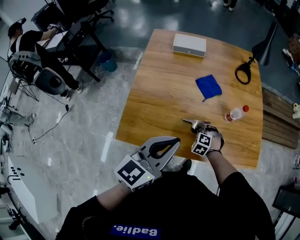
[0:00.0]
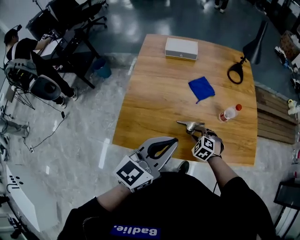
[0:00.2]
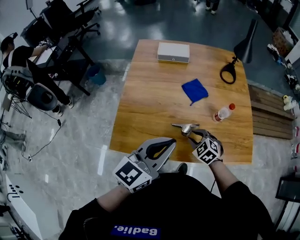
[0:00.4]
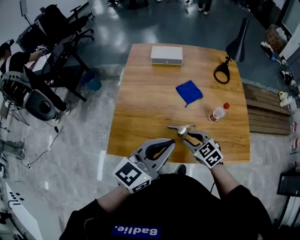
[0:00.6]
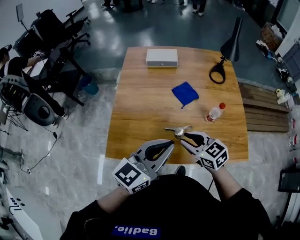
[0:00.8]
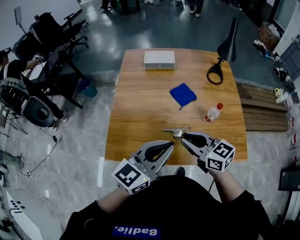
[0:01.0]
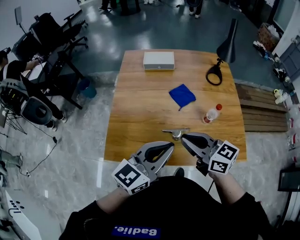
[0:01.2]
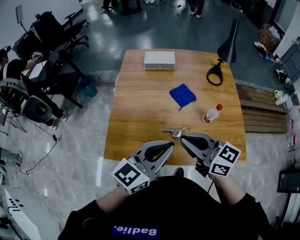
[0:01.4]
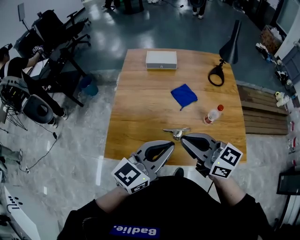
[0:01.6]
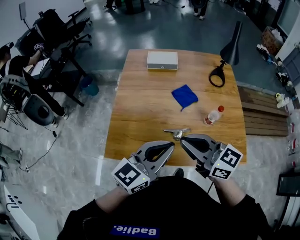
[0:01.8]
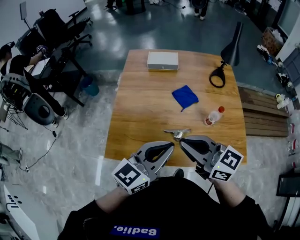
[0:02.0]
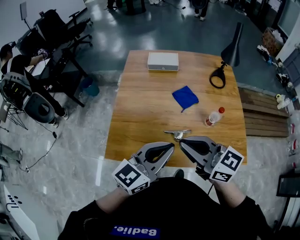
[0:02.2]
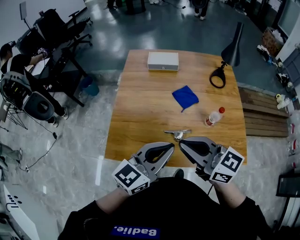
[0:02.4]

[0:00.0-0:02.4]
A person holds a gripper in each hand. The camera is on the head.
0:00.0 to 0:01.2: The right gripper shifts about 30 cm upward, tips its fingers upward by approximately 60 degrees, and closes its fingers. The left gripper travels to the right by approximately 5 cm.
0:01.2 to 0:02.4: The right gripper travels upward by approximately 5 cm.

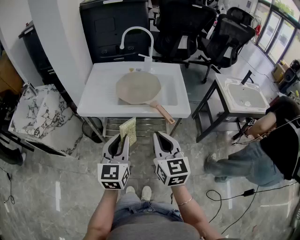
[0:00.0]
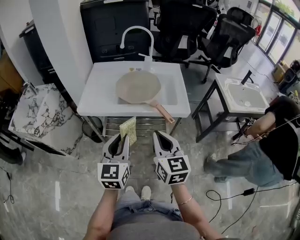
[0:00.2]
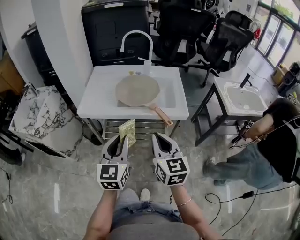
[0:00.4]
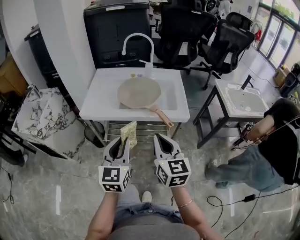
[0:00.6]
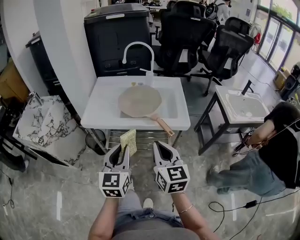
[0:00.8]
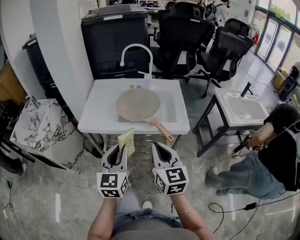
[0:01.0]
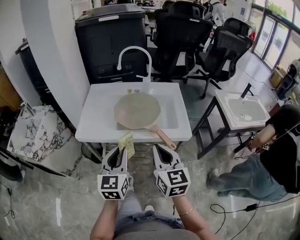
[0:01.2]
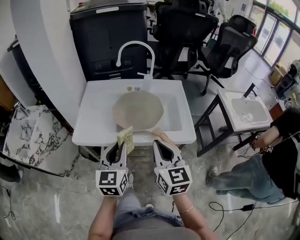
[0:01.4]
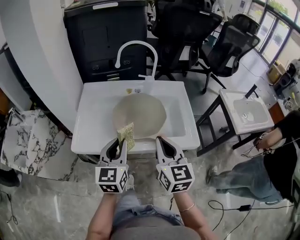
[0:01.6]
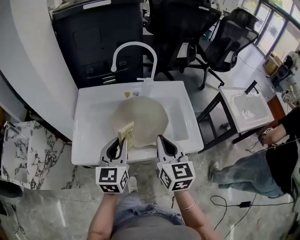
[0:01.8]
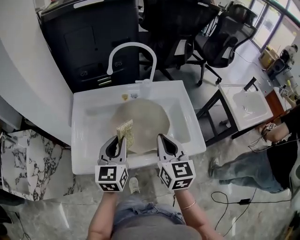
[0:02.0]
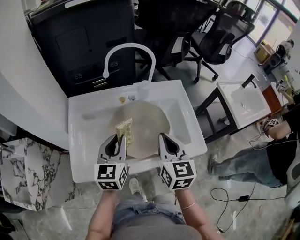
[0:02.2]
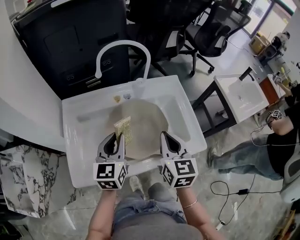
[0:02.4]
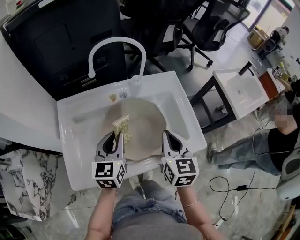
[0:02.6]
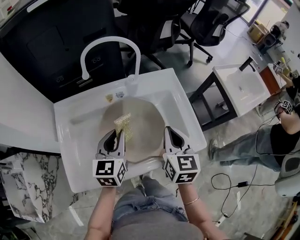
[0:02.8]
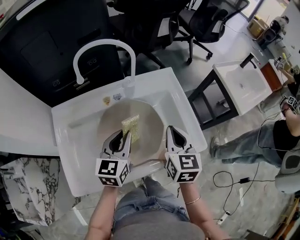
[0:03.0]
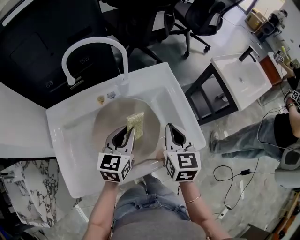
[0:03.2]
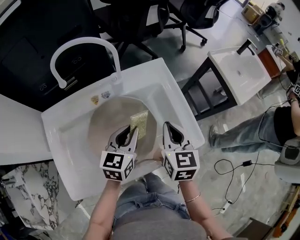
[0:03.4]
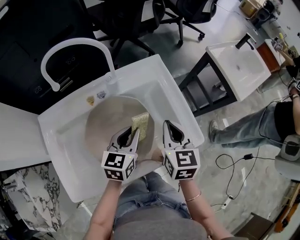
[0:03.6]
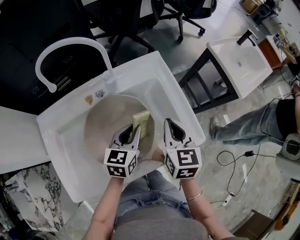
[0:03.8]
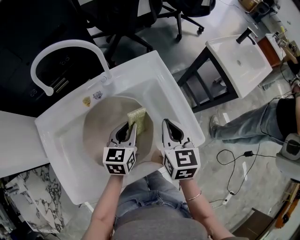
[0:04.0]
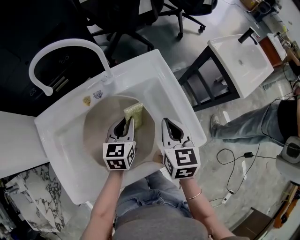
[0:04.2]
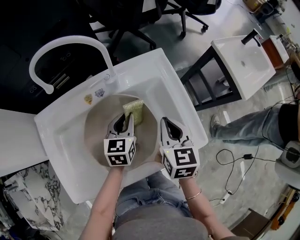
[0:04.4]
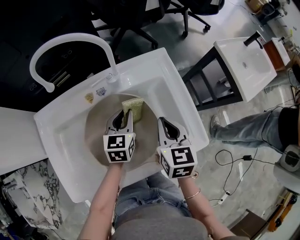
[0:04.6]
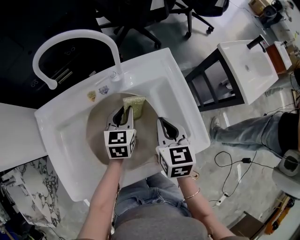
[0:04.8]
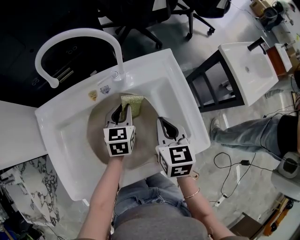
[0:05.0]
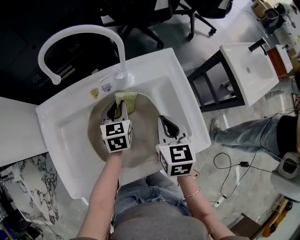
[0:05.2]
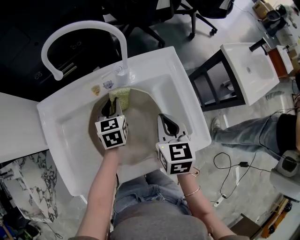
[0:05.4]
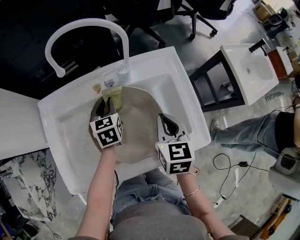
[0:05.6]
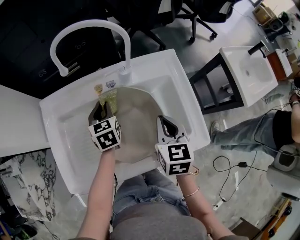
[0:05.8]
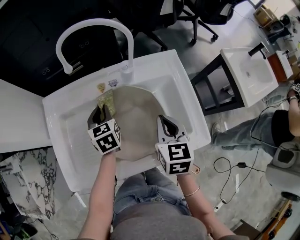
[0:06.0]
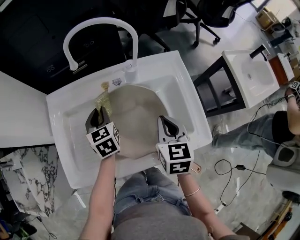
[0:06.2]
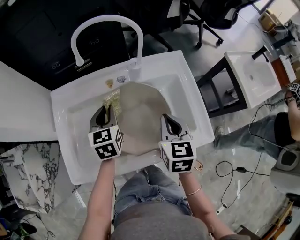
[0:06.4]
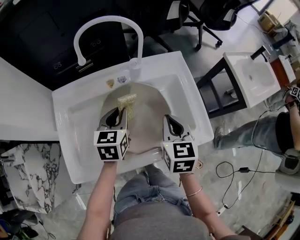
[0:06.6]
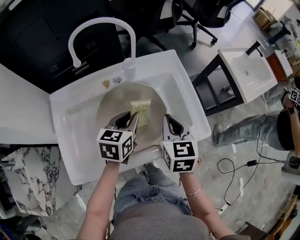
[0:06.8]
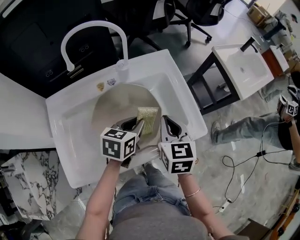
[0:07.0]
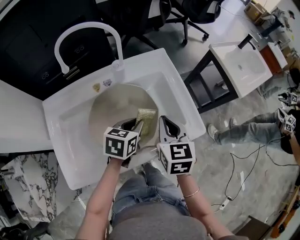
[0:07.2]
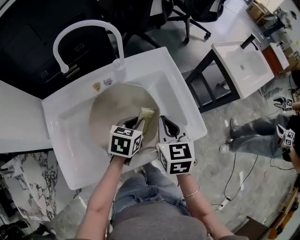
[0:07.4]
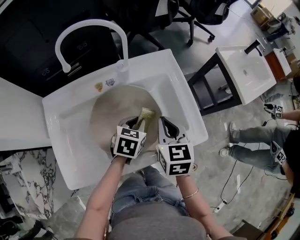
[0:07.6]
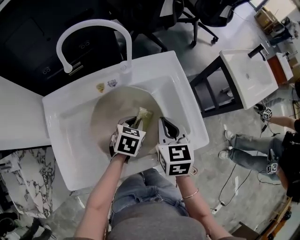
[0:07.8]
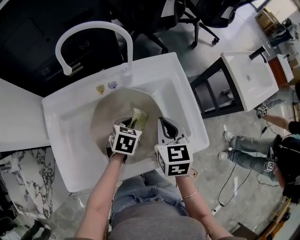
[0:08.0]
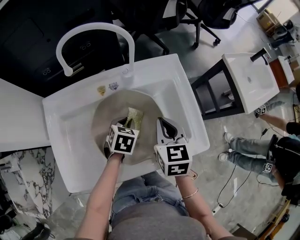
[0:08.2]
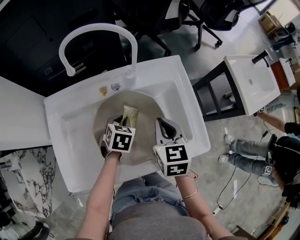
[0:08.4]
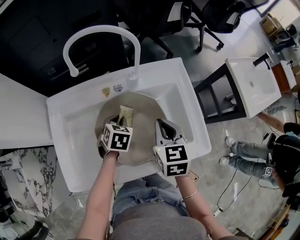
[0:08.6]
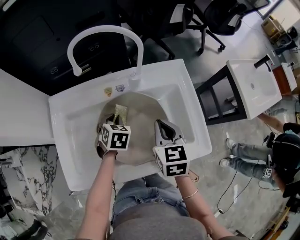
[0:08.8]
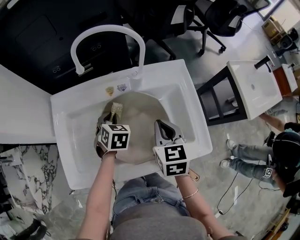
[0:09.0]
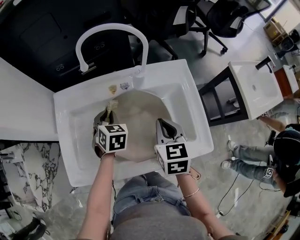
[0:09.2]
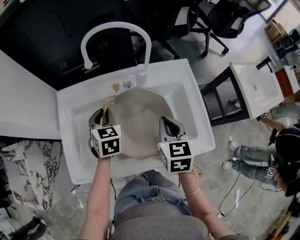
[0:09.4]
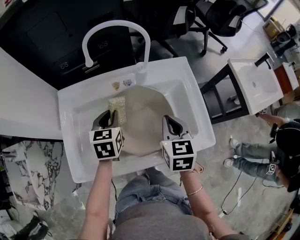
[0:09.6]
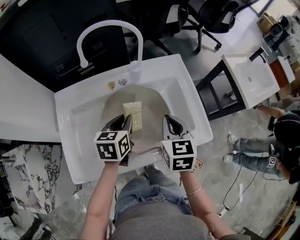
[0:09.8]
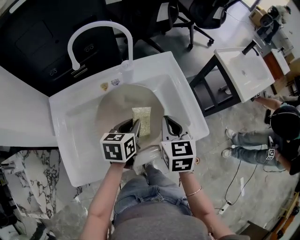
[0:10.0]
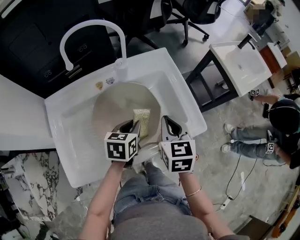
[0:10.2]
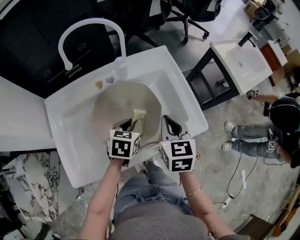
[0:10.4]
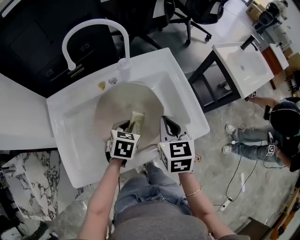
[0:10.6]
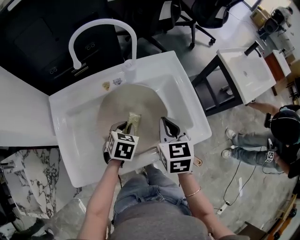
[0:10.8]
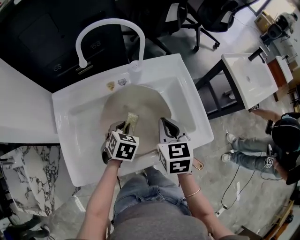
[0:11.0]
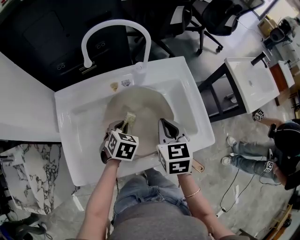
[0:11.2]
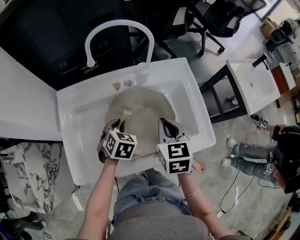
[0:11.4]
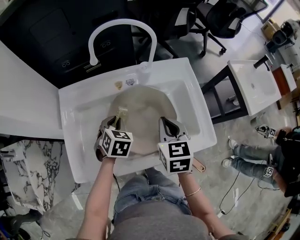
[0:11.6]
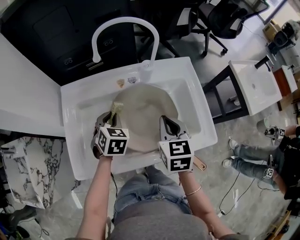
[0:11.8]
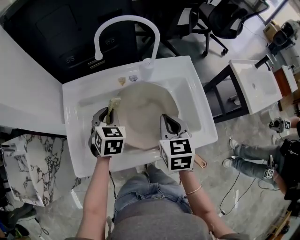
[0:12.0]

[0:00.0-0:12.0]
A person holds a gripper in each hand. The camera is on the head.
0:00.0 to 0:01.6: The two grippers go approximately 20 cm forward.
0:01.6 to 0:03.0: Both grippers travel together forward, approximately 20 cm. The left gripper changes its angle by about 20 degrees. Meanwhile the right gripper turns by about 30 degrees.
0:03.0 to 0:04.4: The left gripper heads forward and downward, covering roughly 15 cm. The right gripper travels downward by roughly 5 cm.
0:04.4 to 0:06.0: The right gripper is displaced to the left by approximately 5 cm. Meanwhile the left gripper travels to the left by roughly 15 cm, and rotates approximately 30 degrees.
0:06.0 to 0:07.6: The left gripper moves some 20 cm, and rotates some 40 degrees.
0:07.6 to 0:09.0: The right gripper moves roughly 5 cm. Meanwhile the left gripper shifts by about 15 cm, and changes its angle by some 30 degrees.
0:09.0 to 0:10.4: The right gripper changes place by some 10 cm. The left gripper moves some 10 cm upward and comes back, and turns by approximately 30 degrees.
0:10.4 to 0:12.0: The right gripper ends up about 10 cm from where it was. Meanwhile the left gripper ends up roughly 20 cm from where it was, and changes its angle by roughly 30 degrees.

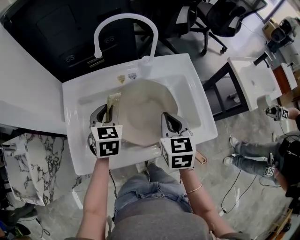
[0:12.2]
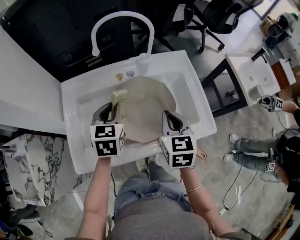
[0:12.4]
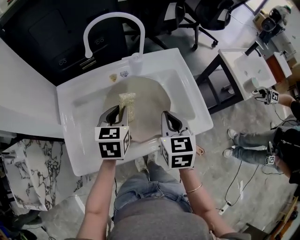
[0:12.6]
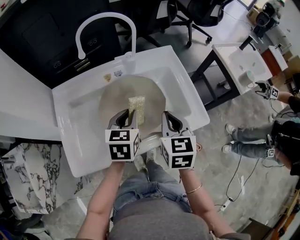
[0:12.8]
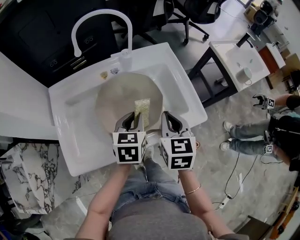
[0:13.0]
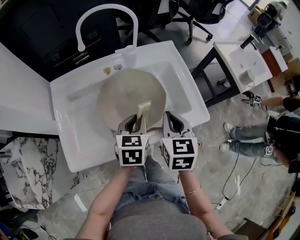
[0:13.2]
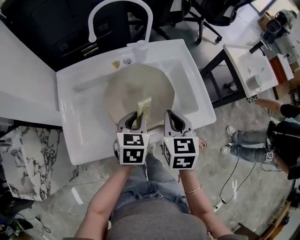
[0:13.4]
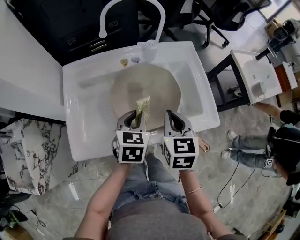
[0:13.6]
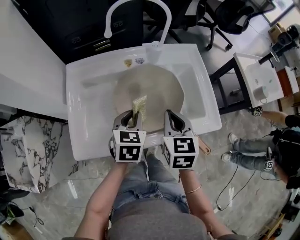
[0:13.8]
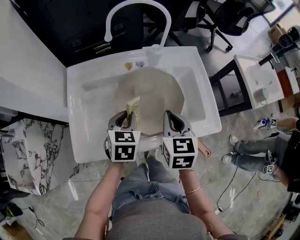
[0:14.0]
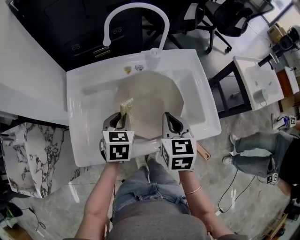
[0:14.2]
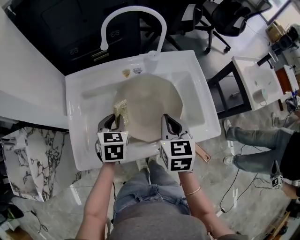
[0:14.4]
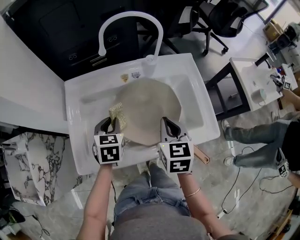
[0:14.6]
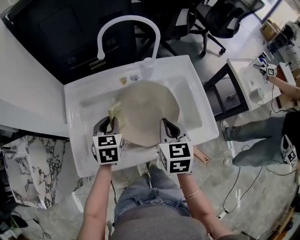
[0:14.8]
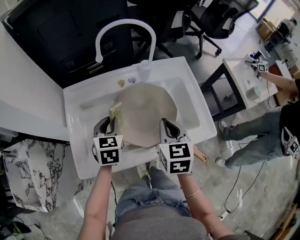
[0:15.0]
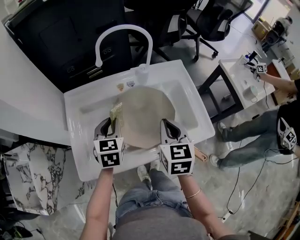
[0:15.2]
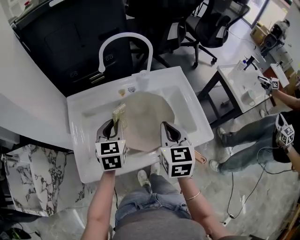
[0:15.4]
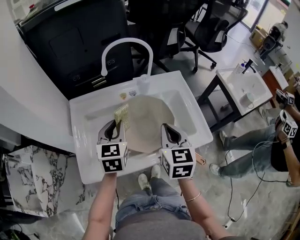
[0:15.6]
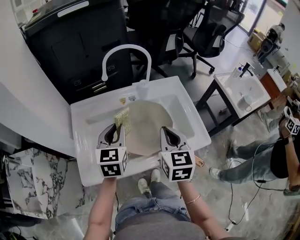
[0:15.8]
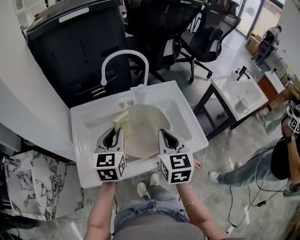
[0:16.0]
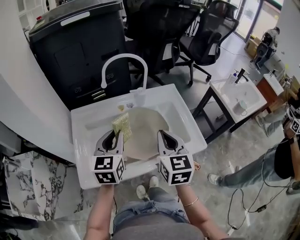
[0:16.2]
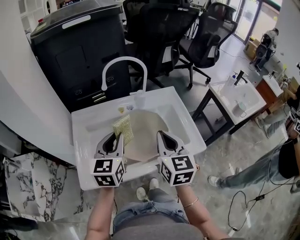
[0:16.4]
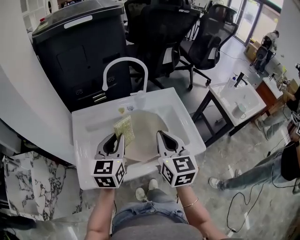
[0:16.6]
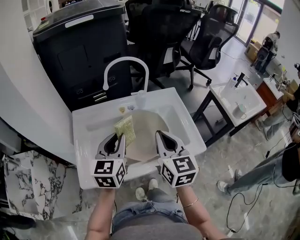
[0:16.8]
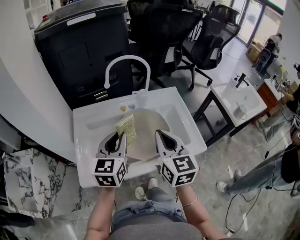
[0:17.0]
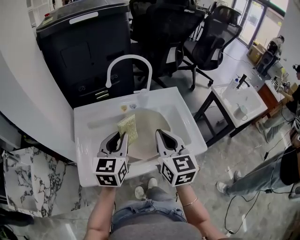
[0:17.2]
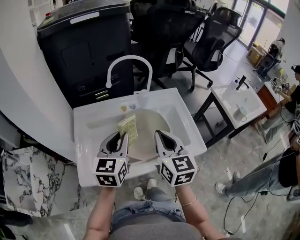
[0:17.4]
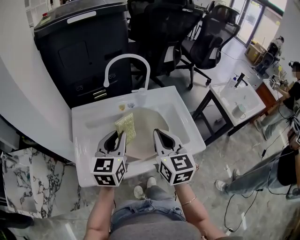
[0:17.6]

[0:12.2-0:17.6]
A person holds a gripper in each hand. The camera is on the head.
0:12.2 to 0:13.6: The left gripper is displaced to the right and backward by approximately 15 cm; the right gripper goes some 5 cm backward.
0:13.6 to 0:15.0: The left gripper moves to the left and forward, some 10 cm.
0:15.0 to 0:16.2: Both grippers move upward, about 10 cm. The left gripper rotates approximately 20 degrees.
0:16.2 to 0:17.6: The grippers stay close to where they were, moving slightly.

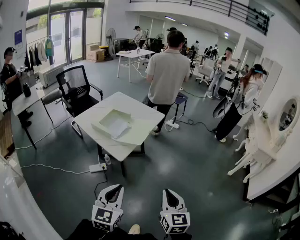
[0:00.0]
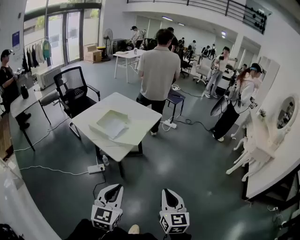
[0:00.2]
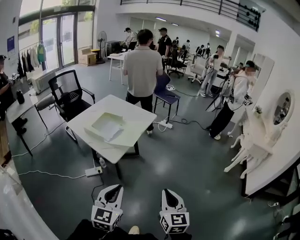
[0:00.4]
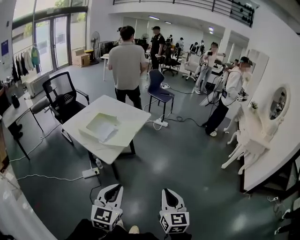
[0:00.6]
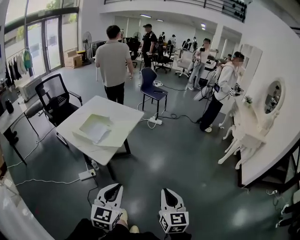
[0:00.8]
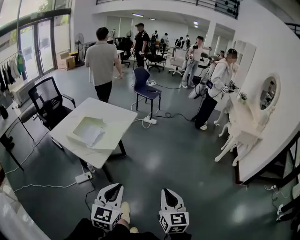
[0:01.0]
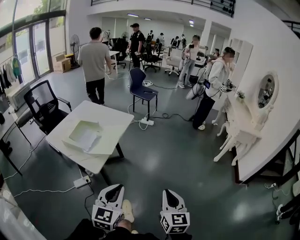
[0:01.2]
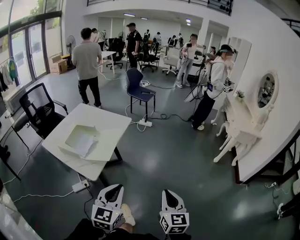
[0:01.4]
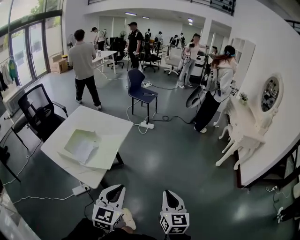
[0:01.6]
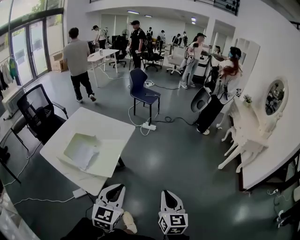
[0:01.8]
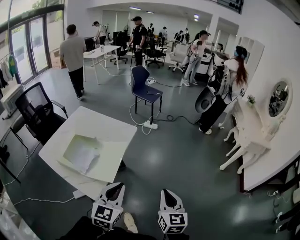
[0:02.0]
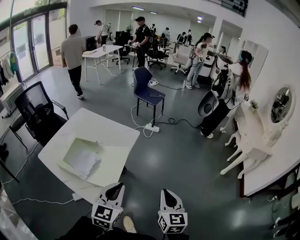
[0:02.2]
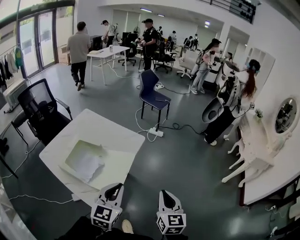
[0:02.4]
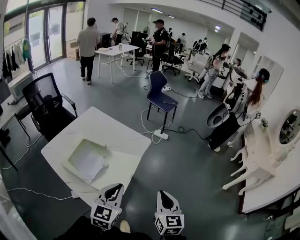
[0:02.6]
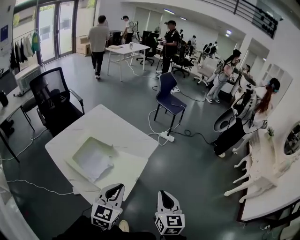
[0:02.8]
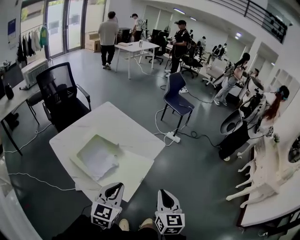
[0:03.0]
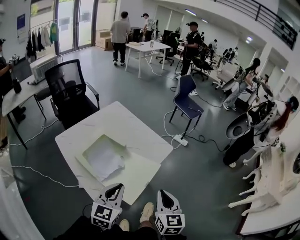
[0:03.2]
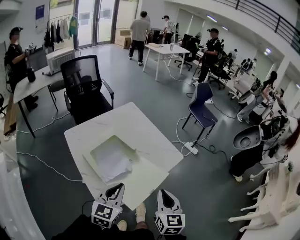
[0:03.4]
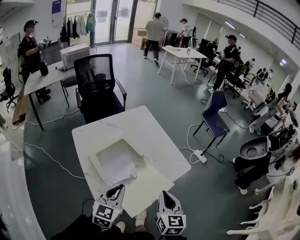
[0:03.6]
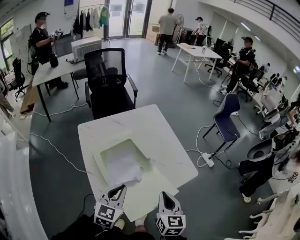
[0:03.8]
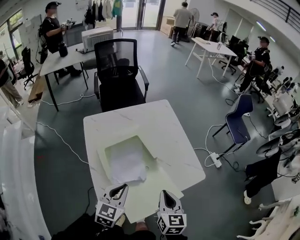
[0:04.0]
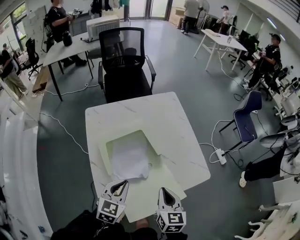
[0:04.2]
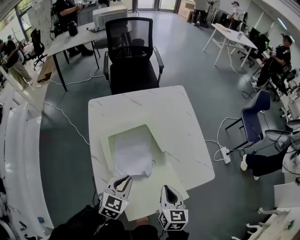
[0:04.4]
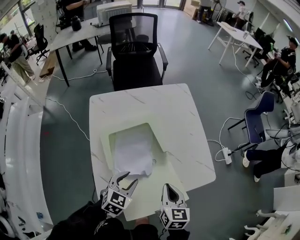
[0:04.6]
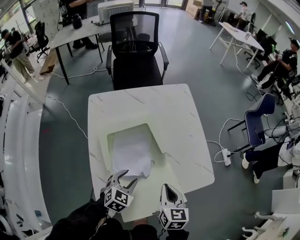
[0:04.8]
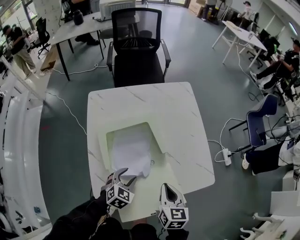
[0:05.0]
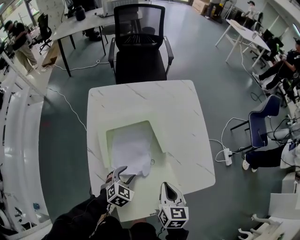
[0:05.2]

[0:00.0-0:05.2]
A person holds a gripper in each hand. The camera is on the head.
0:00.0 to 0:01.8: The grippers both shift forward by some 30 cm.
0:01.8 to 0:03.4: The left gripper ends up about 35 cm from where it was, and rotates about 30 degrees, while the right gripper changes place by about 40 cm, and rotates some 30 degrees.
0:03.4 to 0:05.2: The left gripper heads downward, covering roughly 30 cm, tilts its fingers approximately 30 degrees downward, and opens up. The right gripper moves some 30 cm, and rotates about 40 degrees.
